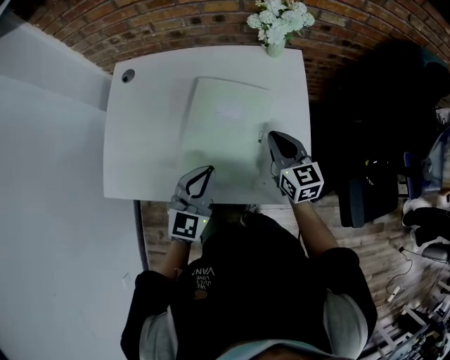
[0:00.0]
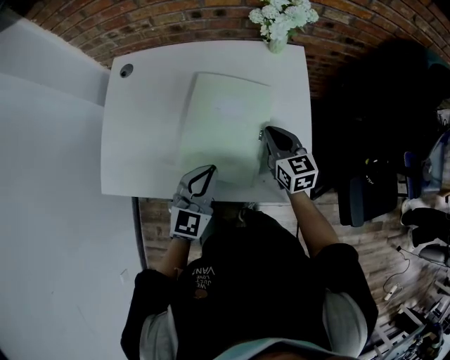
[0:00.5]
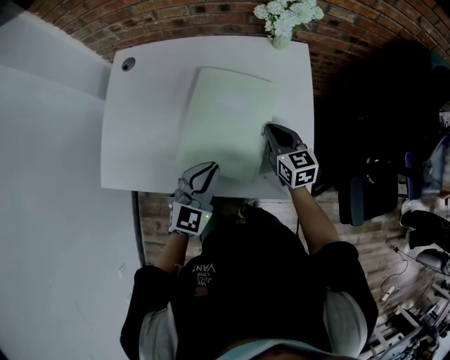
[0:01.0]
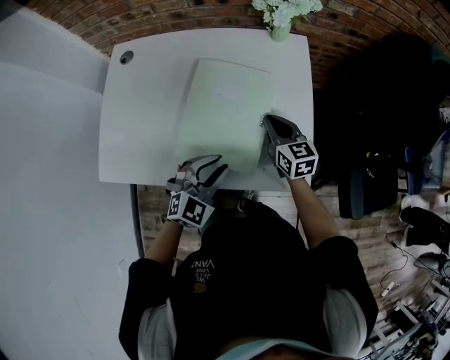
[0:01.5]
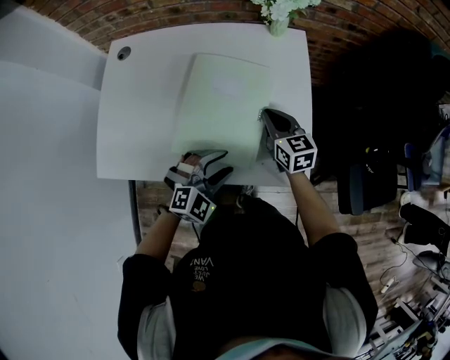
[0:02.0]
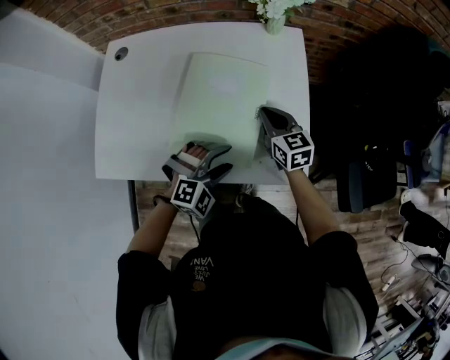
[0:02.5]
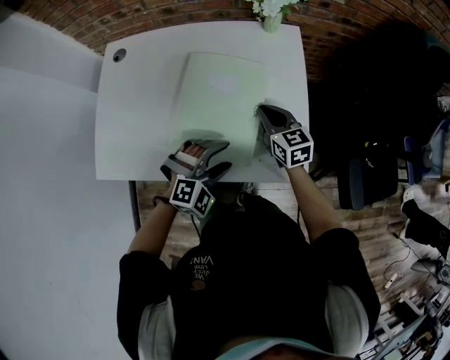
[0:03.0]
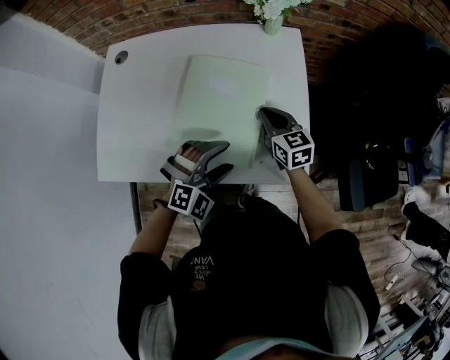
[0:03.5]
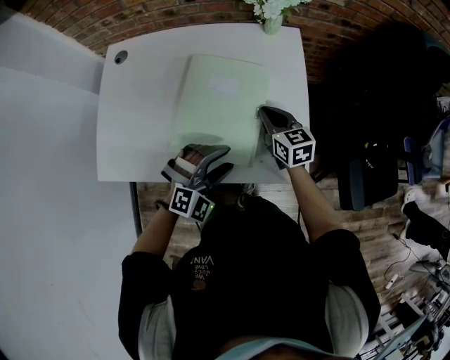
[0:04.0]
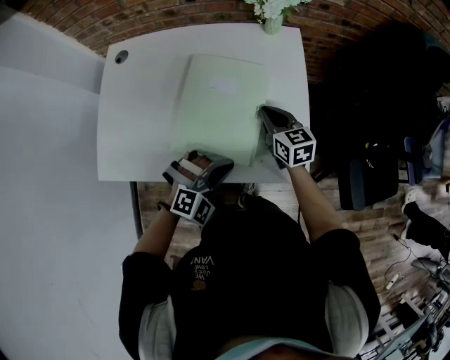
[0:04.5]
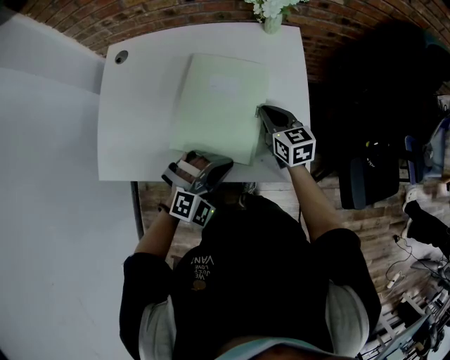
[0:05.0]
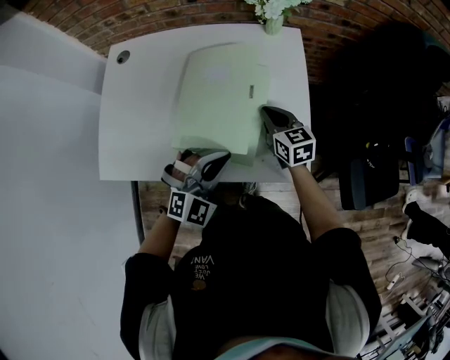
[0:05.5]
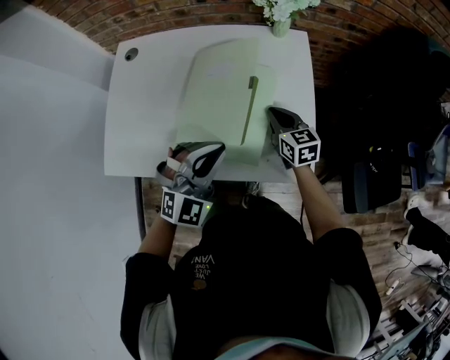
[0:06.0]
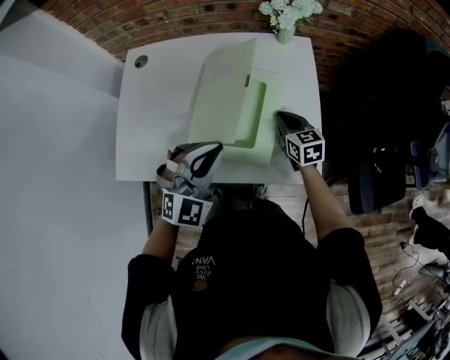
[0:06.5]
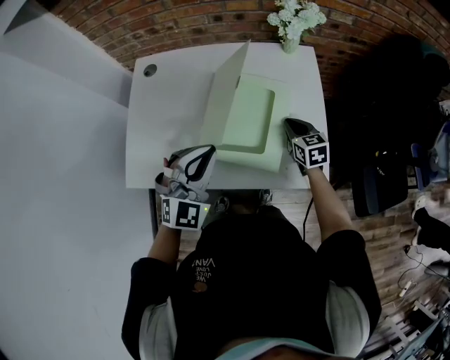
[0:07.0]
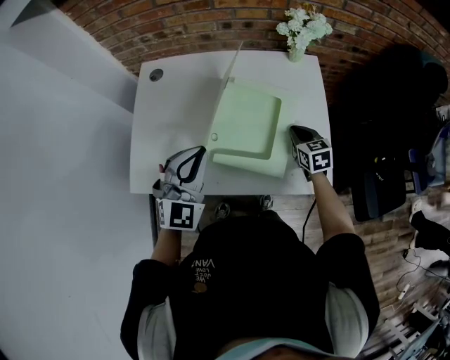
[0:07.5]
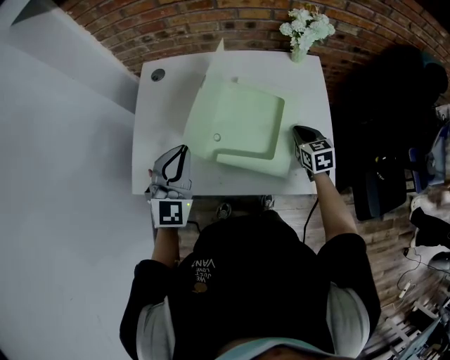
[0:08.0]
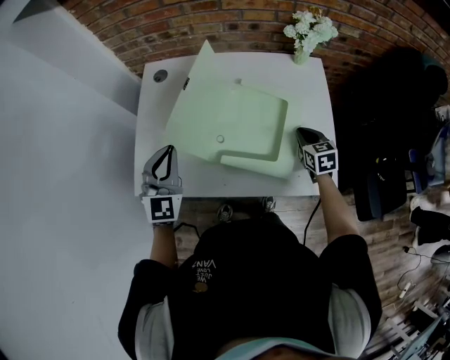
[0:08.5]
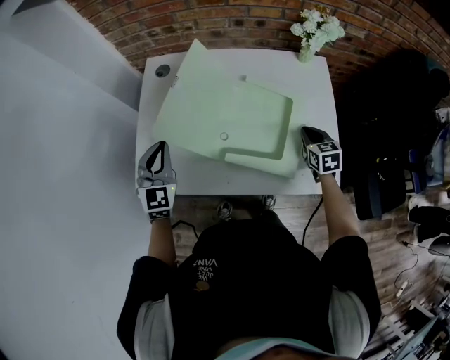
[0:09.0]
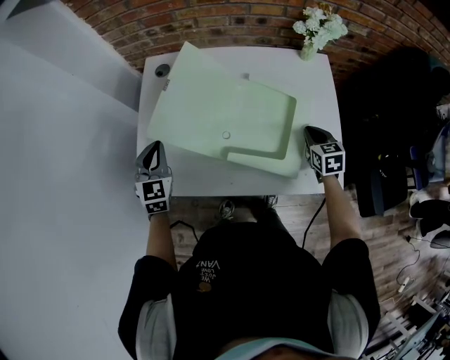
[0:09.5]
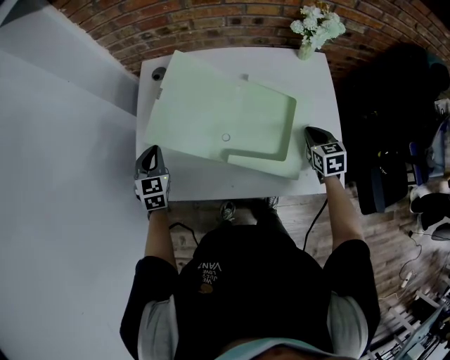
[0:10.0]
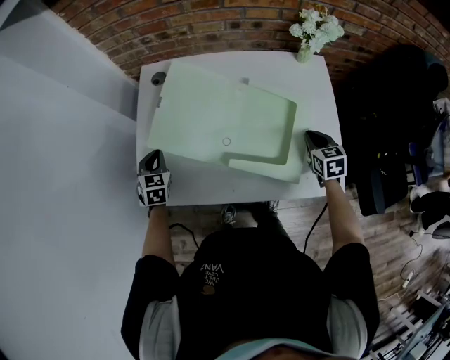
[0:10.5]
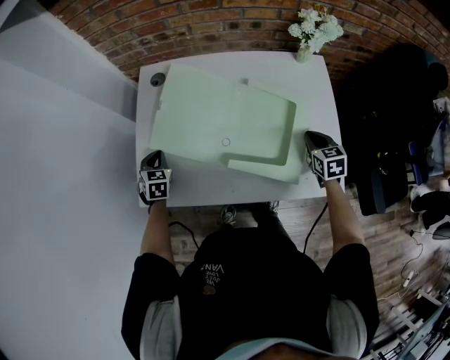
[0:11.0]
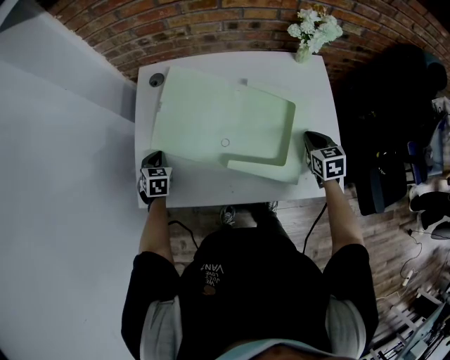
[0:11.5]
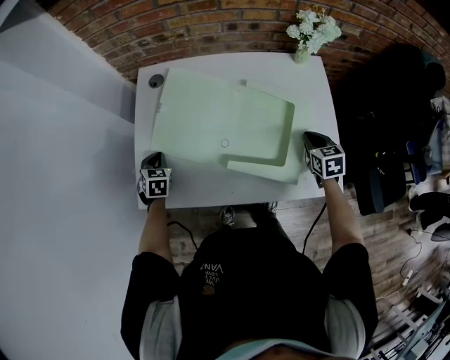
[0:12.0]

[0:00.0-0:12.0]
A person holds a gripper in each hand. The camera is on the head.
0:00.0 to 0:02.0: The left gripper goes about 10 cm downward and to the right, swivels roughly 40 degrees, and opens up. Meanwhile the right gripper shifts approximately 5 cm downward.
0:02.0 to 0:04.0: The grippers stay close to where they were, moving slightly.
0:04.0 to 0:06.0: The left gripper heads upward, covering about 10 cm, swivels roughly 20 degrees, and closes its fingers.
0:06.0 to 0:08.0: The left gripper goes some 20 cm to the left, and changes its angle by roughly 30 degrees.
0:08.0 to 0:10.0: The left gripper moves to the left, downward and forward, roughly 25 cm, and swivels roughly 30 degrees.
0:10.0 to 0:12.0: The left gripper is displaced downward by approximately 10 cm.

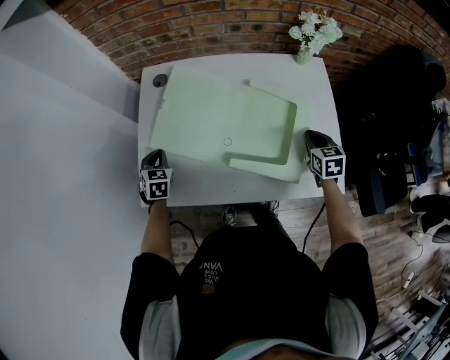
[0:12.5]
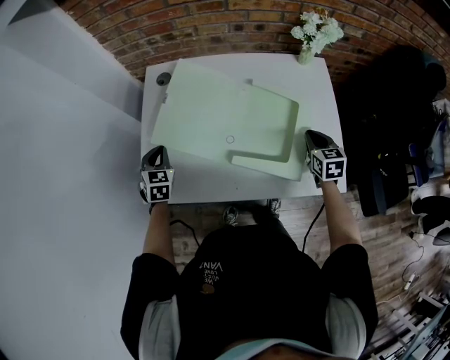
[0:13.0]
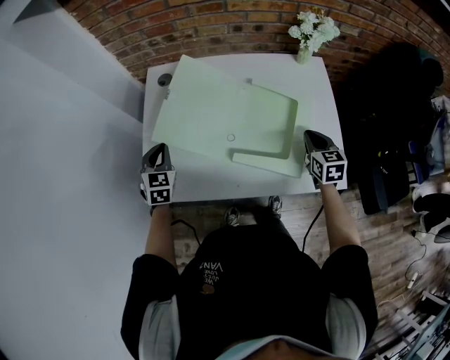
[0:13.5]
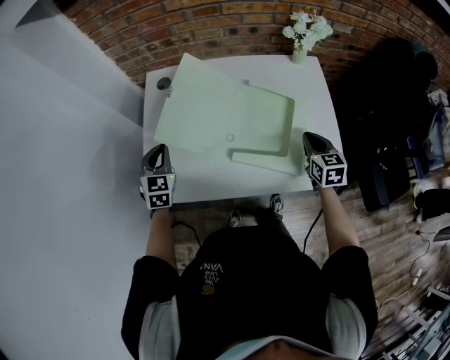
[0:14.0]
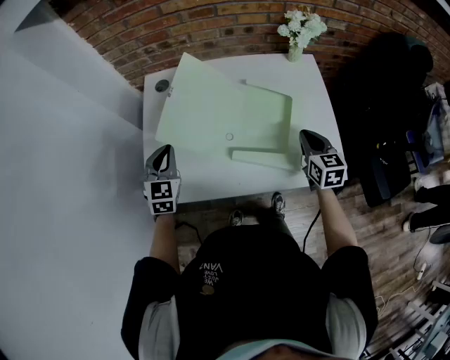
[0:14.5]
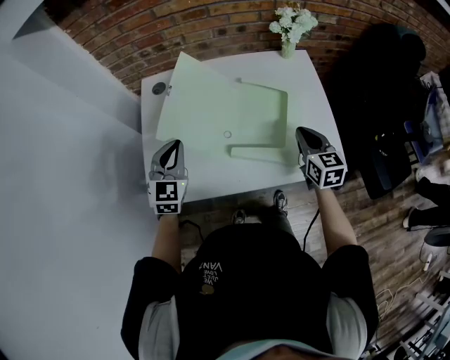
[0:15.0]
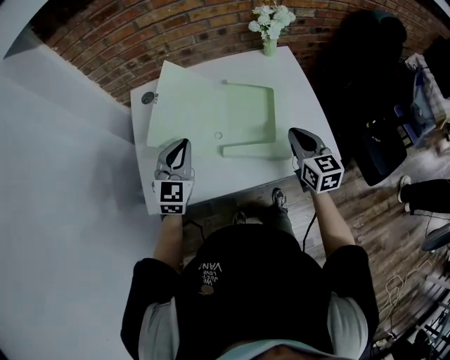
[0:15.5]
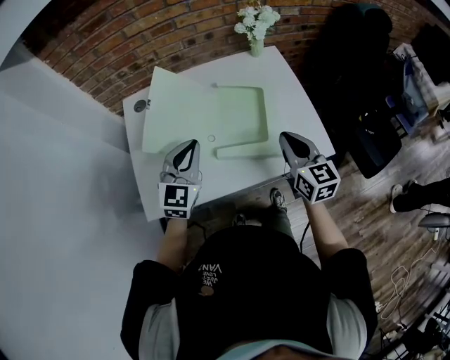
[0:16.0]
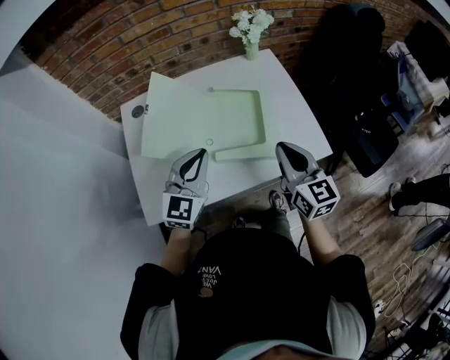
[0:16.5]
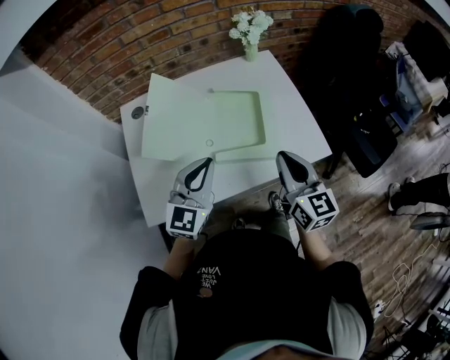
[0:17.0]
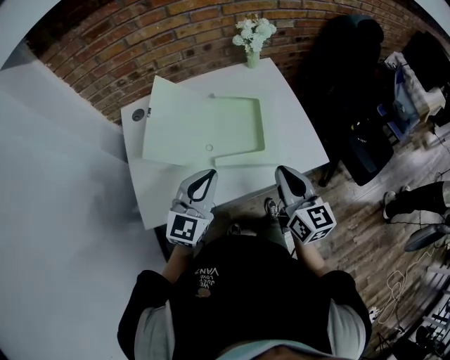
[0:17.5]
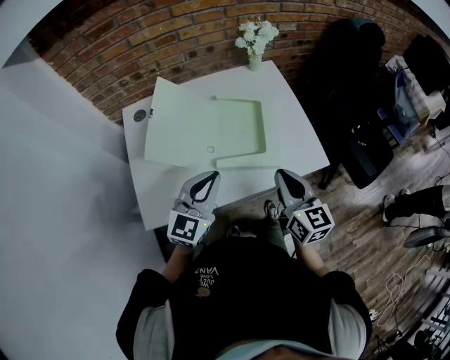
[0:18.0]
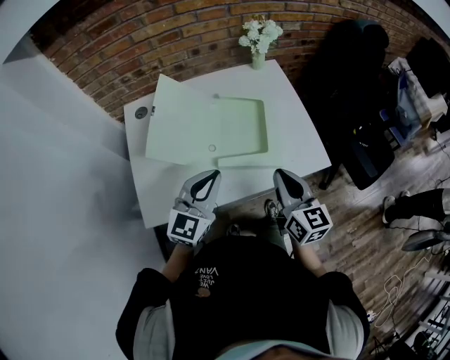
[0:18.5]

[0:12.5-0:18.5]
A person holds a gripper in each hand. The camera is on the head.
0:12.5 to 0:14.5: The left gripper travels upward and to the right by about 15 cm, and swivels approximately 20 degrees; the right gripper is displaced upward by approximately 5 cm.
0:14.5 to 0:16.5: The left gripper moves to the right and upward, approximately 20 cm, and rotates approximately 40 degrees. The right gripper is displaced backward and upward by some 15 cm, and swivels roughly 20 degrees.
0:16.5 to 0:18.5: There are only small adjustments of the grippers.

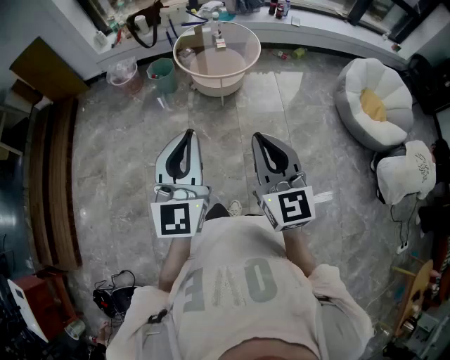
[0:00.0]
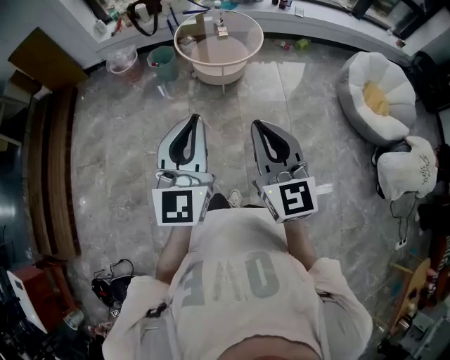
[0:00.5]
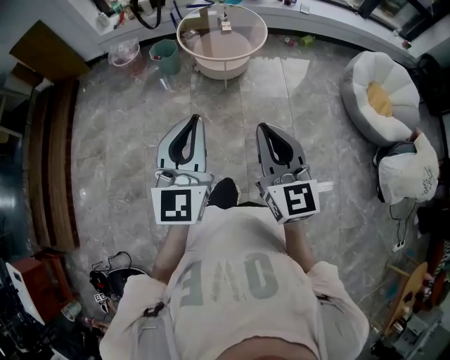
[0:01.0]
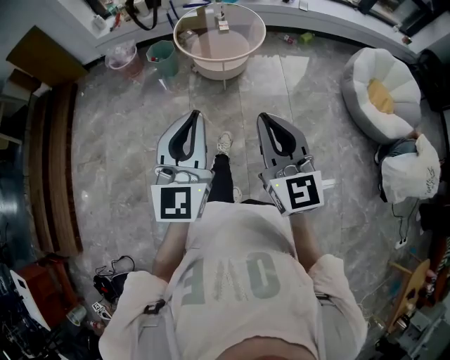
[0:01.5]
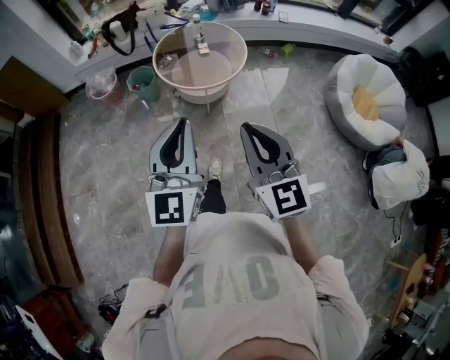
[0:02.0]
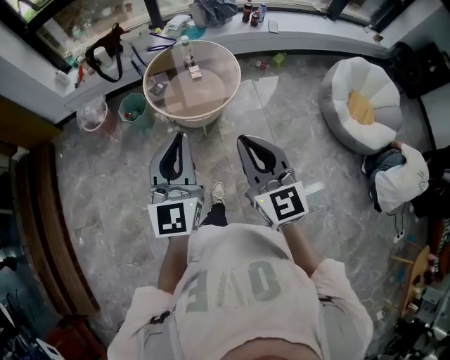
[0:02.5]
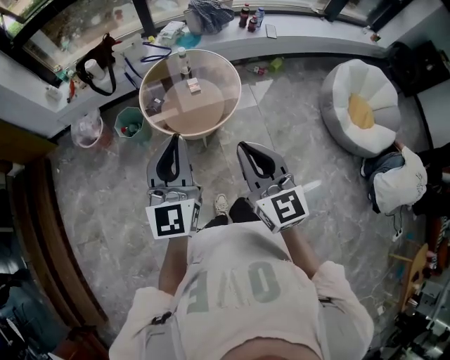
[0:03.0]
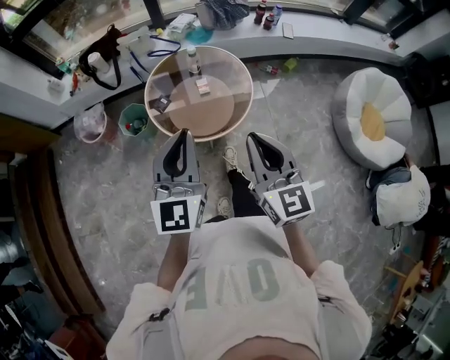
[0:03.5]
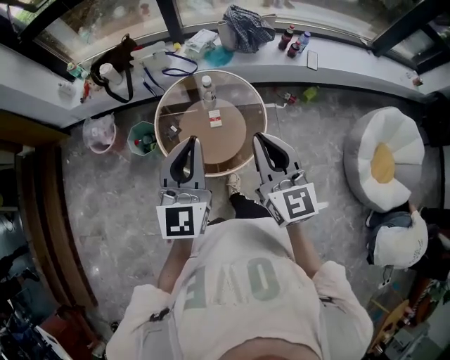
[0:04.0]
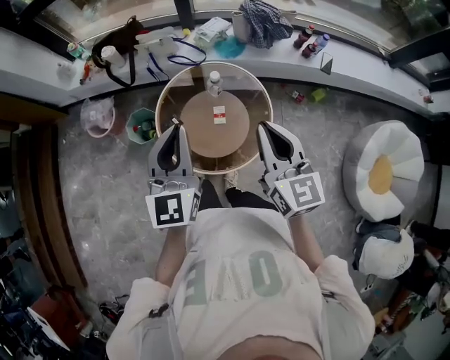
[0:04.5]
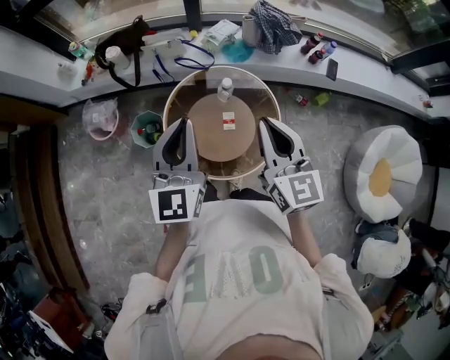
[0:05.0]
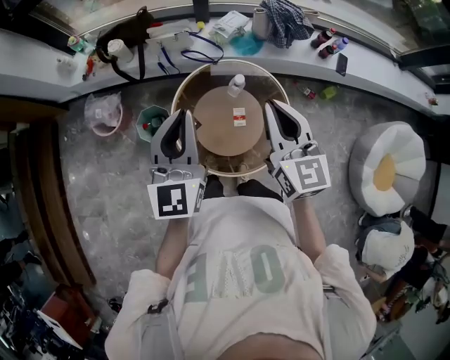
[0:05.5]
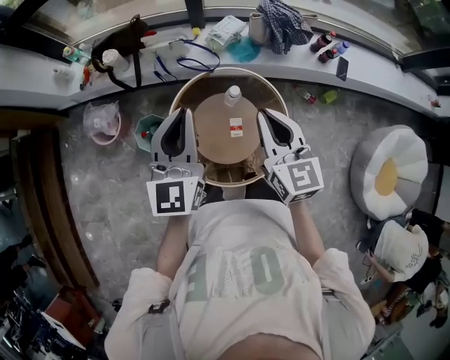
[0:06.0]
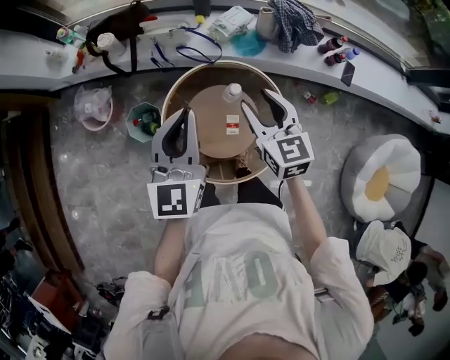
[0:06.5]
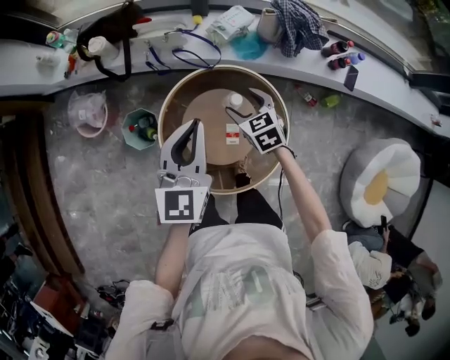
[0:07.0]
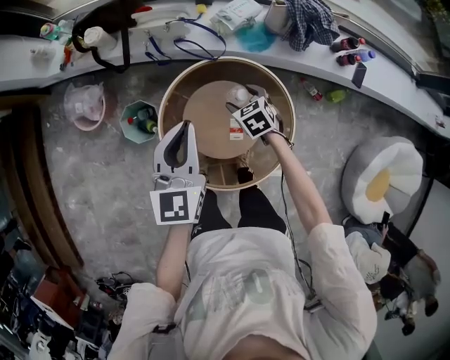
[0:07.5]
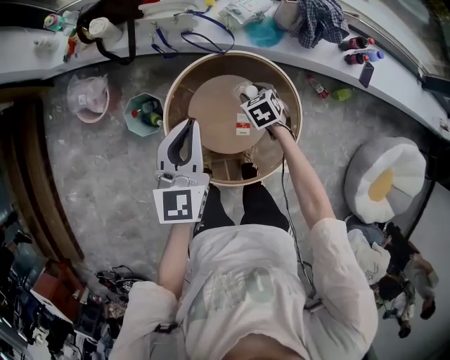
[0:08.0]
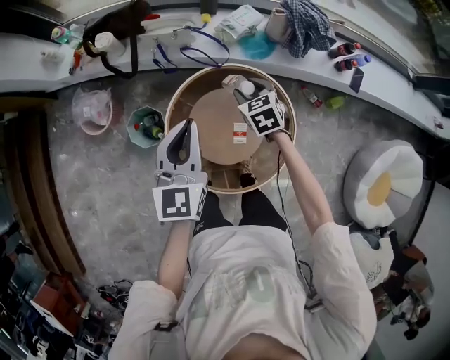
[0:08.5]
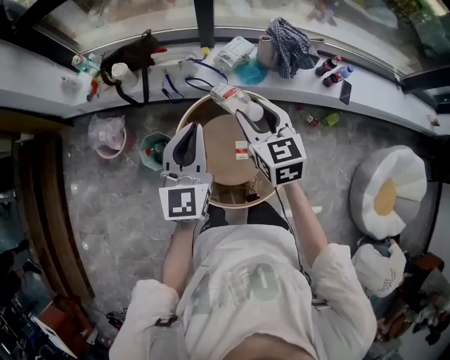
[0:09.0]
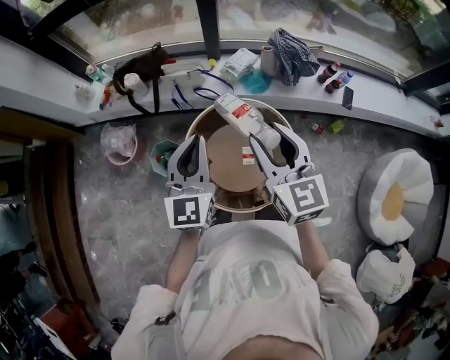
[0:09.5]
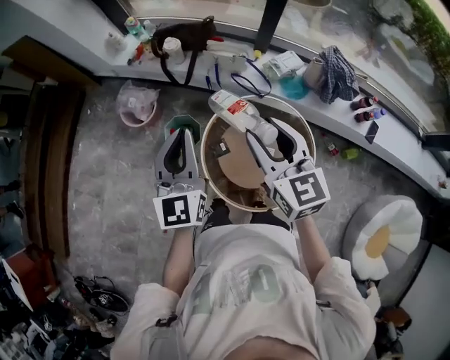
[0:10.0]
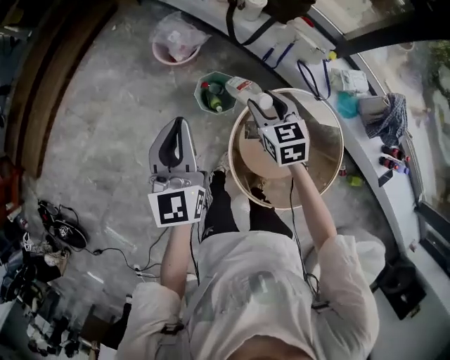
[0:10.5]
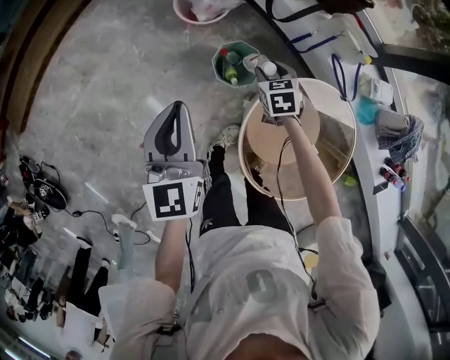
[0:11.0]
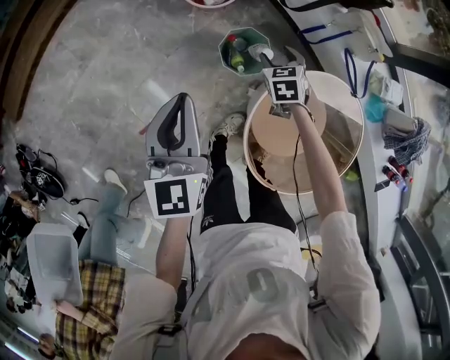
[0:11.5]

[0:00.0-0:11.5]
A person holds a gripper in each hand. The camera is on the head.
0:00.0 to 0:02.0: The grippers both shift forward by some 15 cm.
0:02.0 to 0:04.0: The two grippers travel together, forward, approximately 50 cm.
0:04.0 to 0:06.0: Both grippers move forward, some 25 cm.
0:06.0 to 0:07.5: The left gripper moves downward, some 15 cm. Meanwhile the right gripper shifts roughly 35 cm downward, tilts its fingers some 50 degrees downward, and opens its fingers.
0:07.5 to 0:09.5: The right gripper goes about 40 cm upward, tips its fingers upward by about 50 degrees, and closes up; the left gripper heads upward and backward, covering approximately 15 cm.
0:09.5 to 0:11.5: The two grippers travel together, about 40 cm. The right gripper moves downward, roughly 50 cm, and tips its fingers downward by approximately 40 degrees. Meanwhile the left gripper changes its angle by some 50 degrees.
